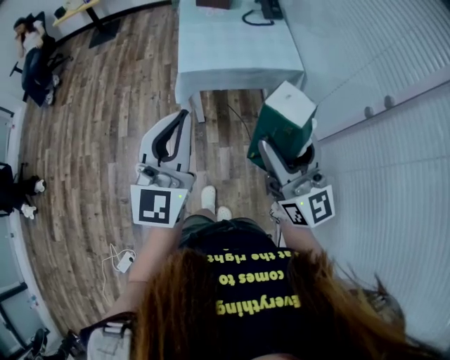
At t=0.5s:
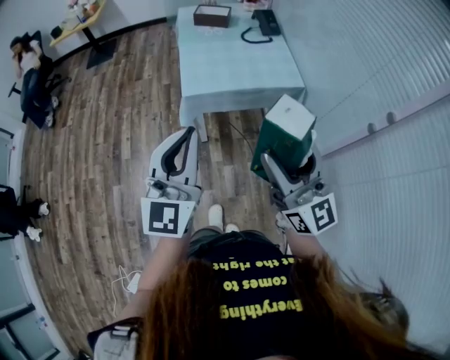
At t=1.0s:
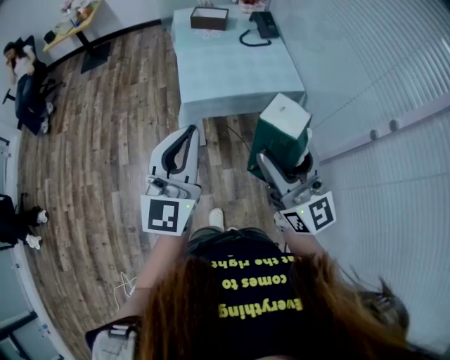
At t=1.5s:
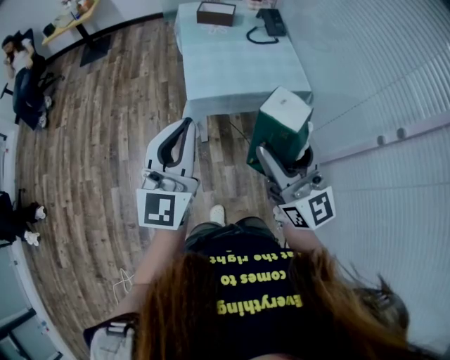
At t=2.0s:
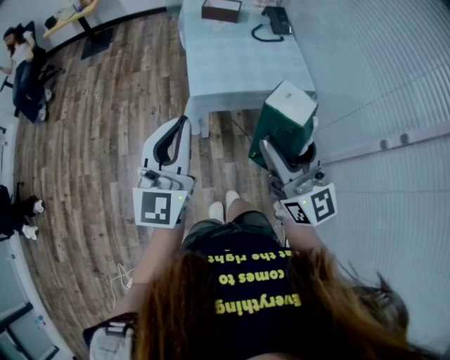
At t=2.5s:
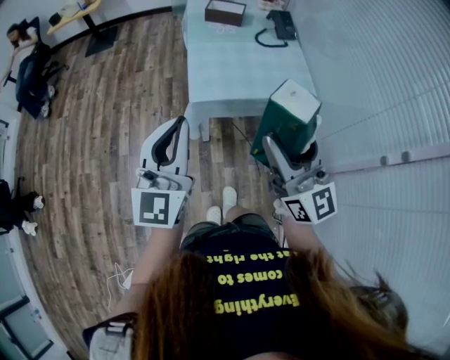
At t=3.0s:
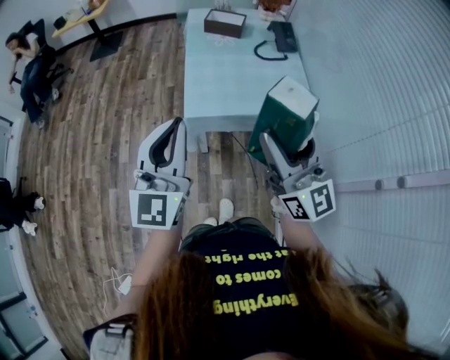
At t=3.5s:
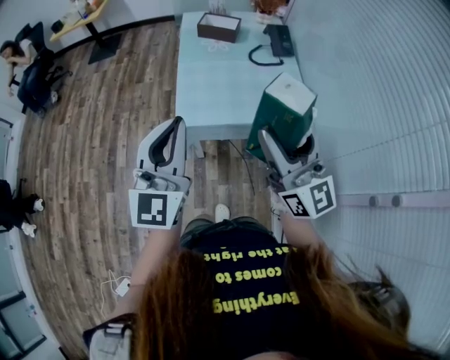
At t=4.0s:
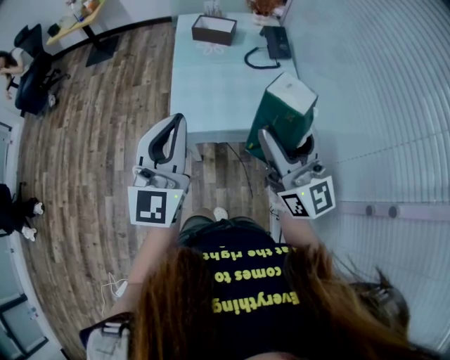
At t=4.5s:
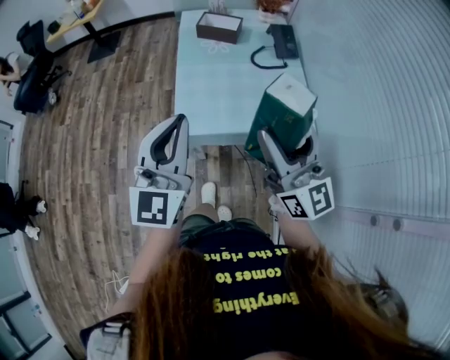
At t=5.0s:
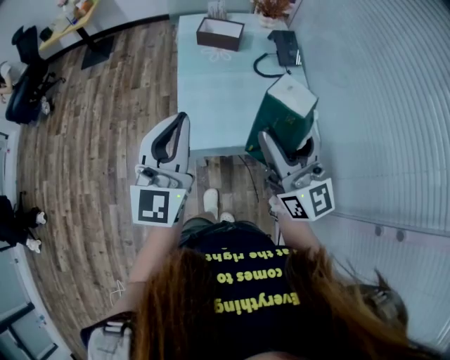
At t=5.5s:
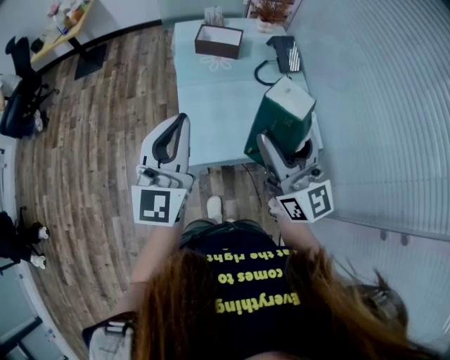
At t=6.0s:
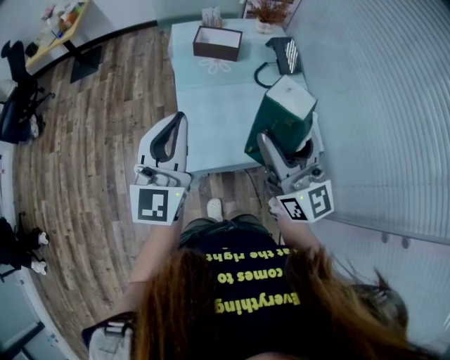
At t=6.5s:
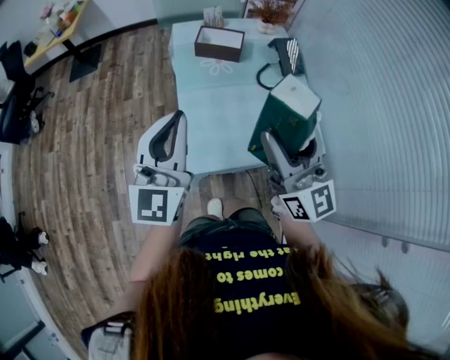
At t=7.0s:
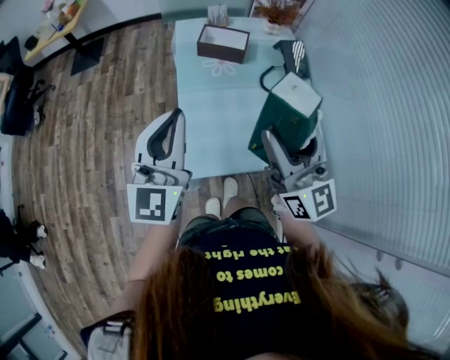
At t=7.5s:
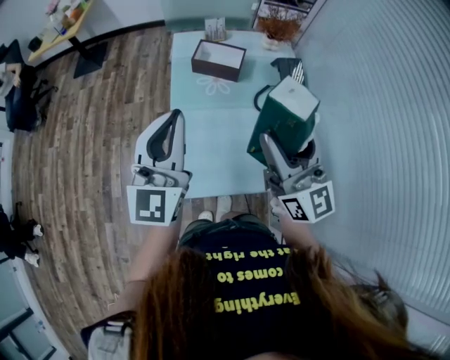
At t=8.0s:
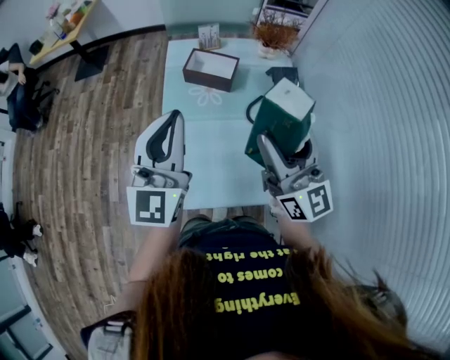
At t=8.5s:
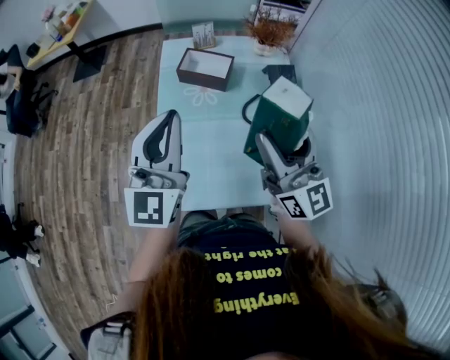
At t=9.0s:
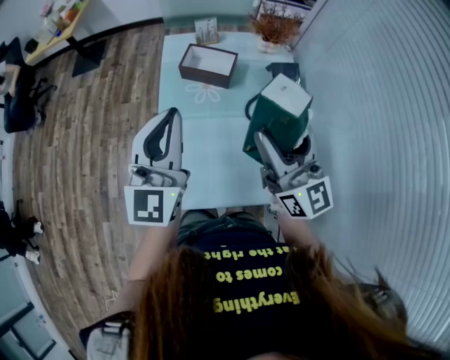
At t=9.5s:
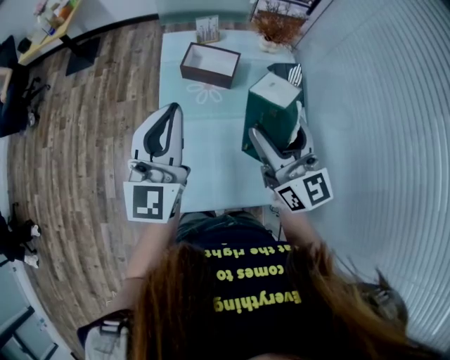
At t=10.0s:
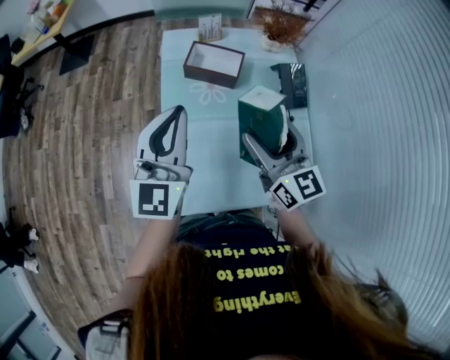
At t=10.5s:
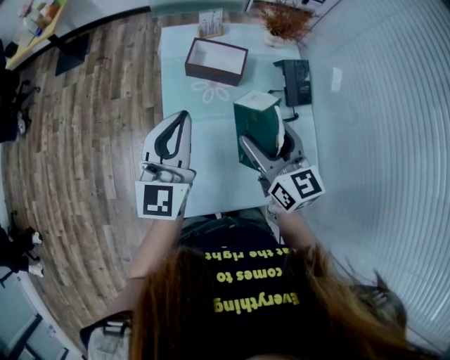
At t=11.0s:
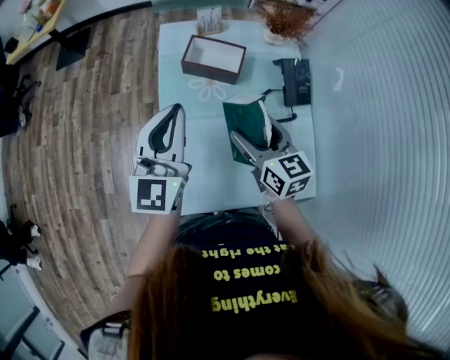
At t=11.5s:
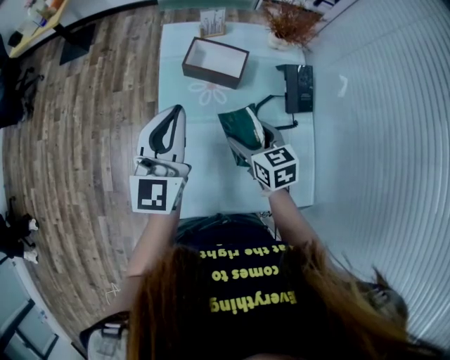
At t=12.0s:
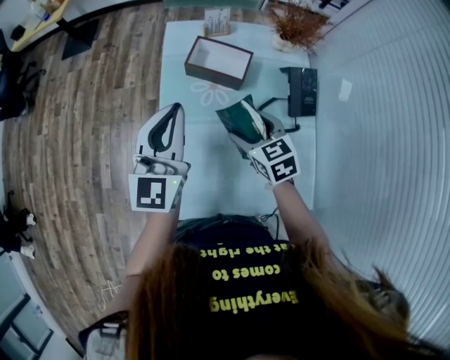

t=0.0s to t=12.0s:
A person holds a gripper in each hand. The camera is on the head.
t=0.0s to t=2.0s: The grippers both shift forward and to the left by approximately 15 cm.
t=2.0s to t=4.0s: Both grippers travel together forward and to the right, about 20 cm.
t=4.0s to t=6.0s: The grippers both shift forward and to the left by approximately 20 cm.
t=6.0s to t=8.0s: Both grippers move forward and to the right, approximately 20 cm.
t=8.0s to t=10.0s: The left gripper travels forward by about 5 cm; the right gripper heads downward, forward and to the left, covering some 15 cm, and changes its angle by approximately 20 degrees.
t=10.0s to t=12.0s: The right gripper moves downward and forward, approximately 15 cm, and tilts its fingers about 40 degrees downward. Meanwhile the left gripper travels forward by some 5 cm.

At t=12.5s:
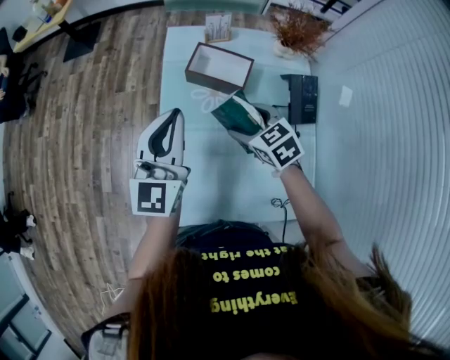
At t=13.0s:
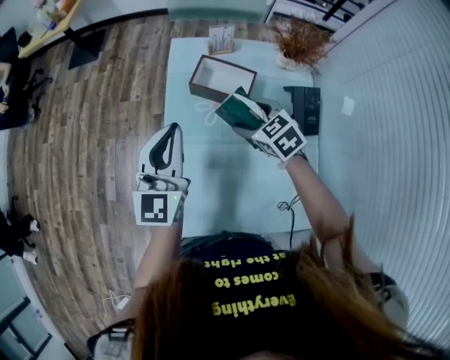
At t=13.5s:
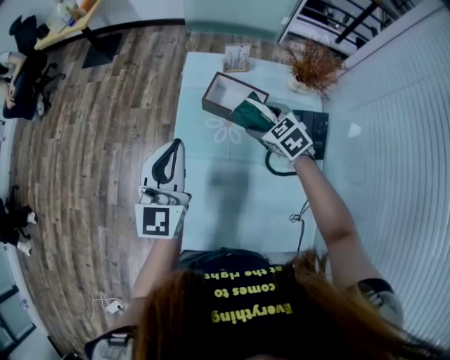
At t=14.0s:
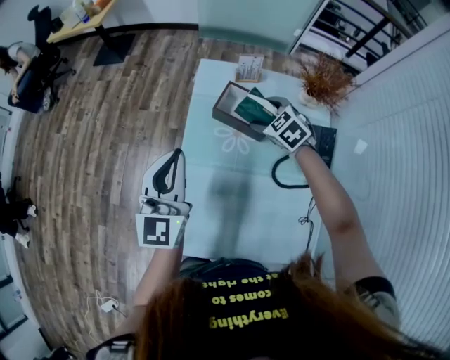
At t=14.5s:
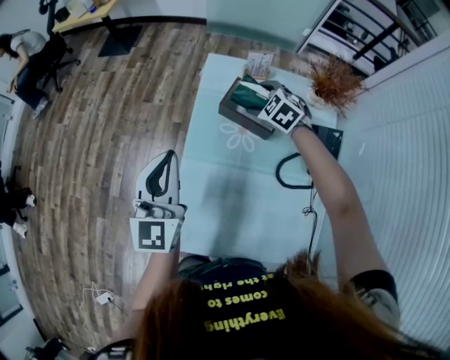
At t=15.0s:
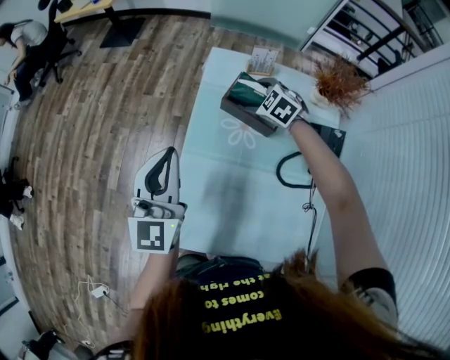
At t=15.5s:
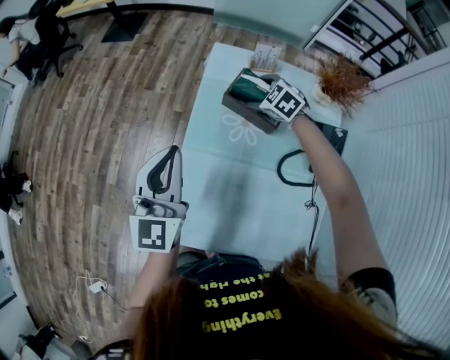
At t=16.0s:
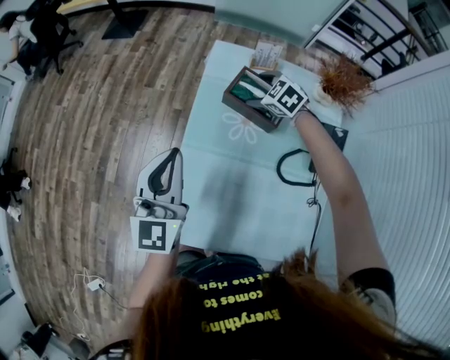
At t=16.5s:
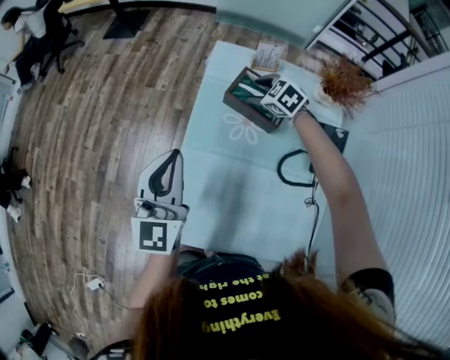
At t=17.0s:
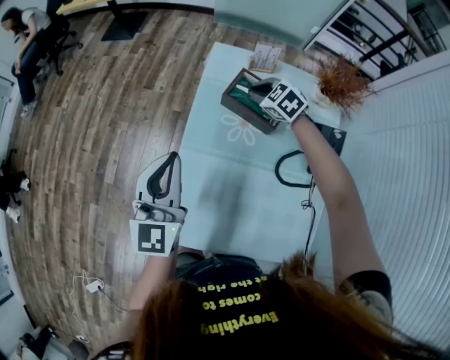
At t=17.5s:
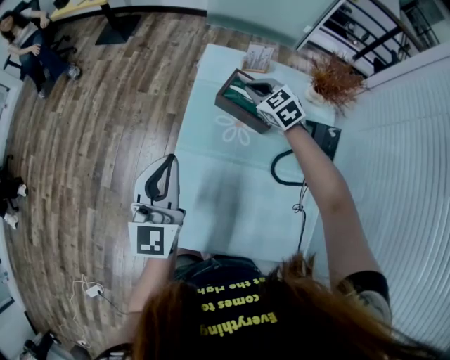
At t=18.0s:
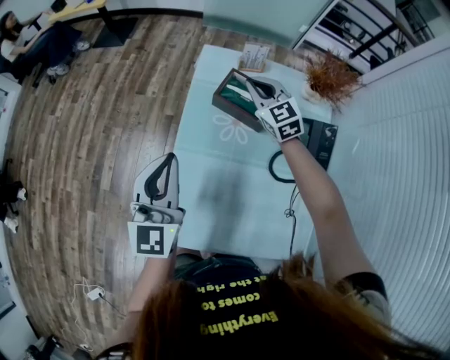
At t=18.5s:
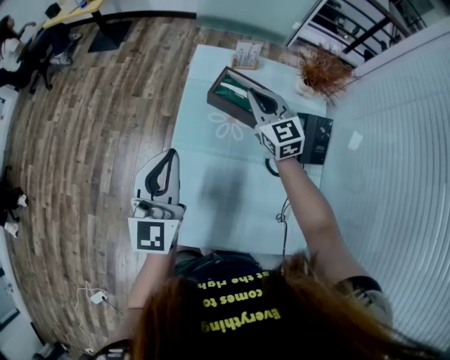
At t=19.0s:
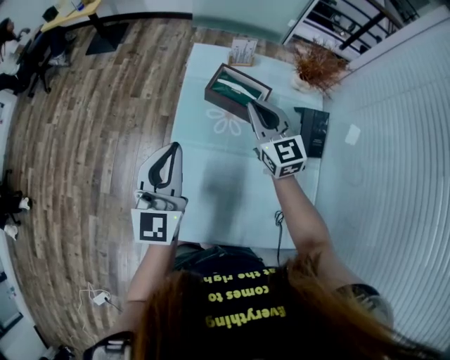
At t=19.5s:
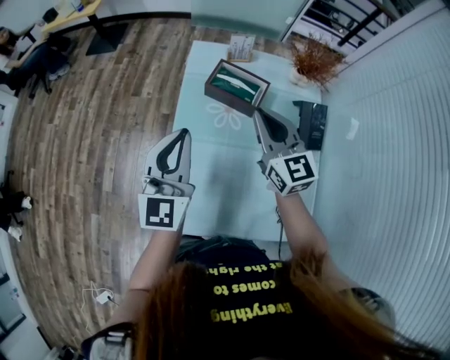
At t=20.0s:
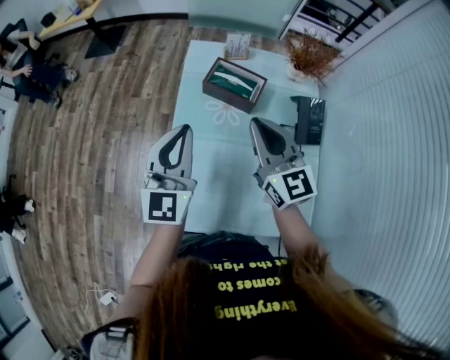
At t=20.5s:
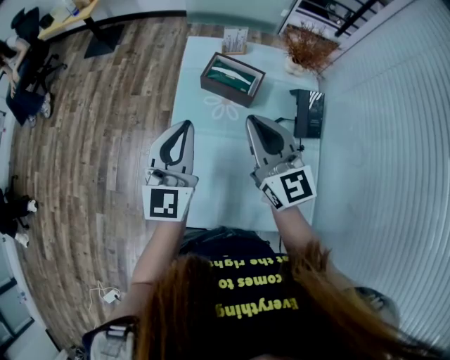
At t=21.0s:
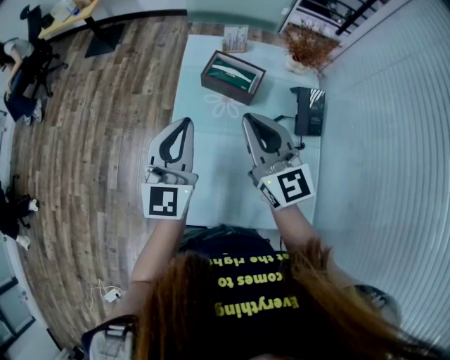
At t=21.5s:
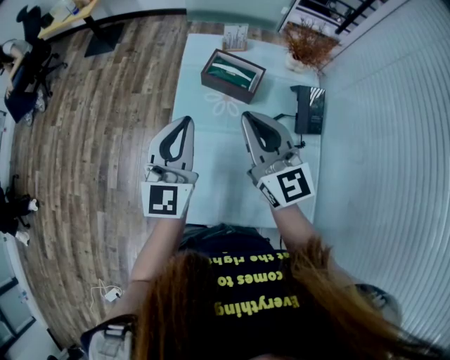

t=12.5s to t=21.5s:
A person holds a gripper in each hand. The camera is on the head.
t=12.5s to t=14.5s: The right gripper goes some 20 cm forward, and changes its angle by approximately 30 degrees. The left gripper goes some 10 cm to the left.
t=14.5s to t=17.0s: The right gripper closes.
t=17.0s to t=19.5s: The right gripper moves backward and upward, roughly 25 cm, and tips its fingers upward by approximately 40 degrees, while the left gripper moves some 5 cm.
t=19.5s to t=21.5s: The right gripper shifts roughly 5 cm backward.

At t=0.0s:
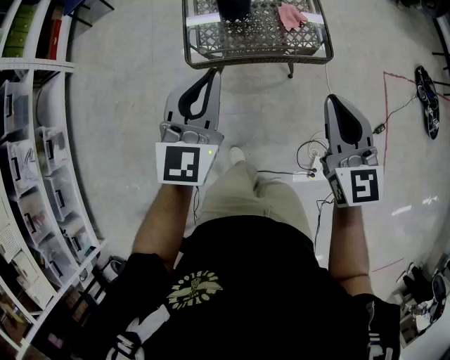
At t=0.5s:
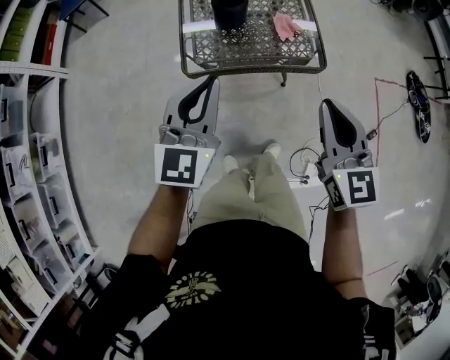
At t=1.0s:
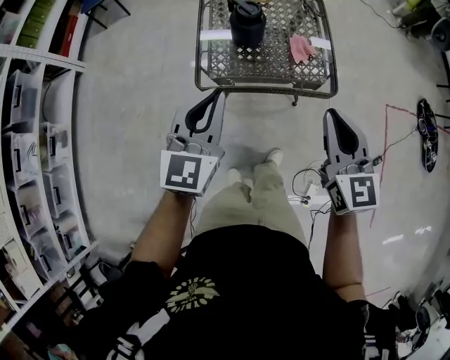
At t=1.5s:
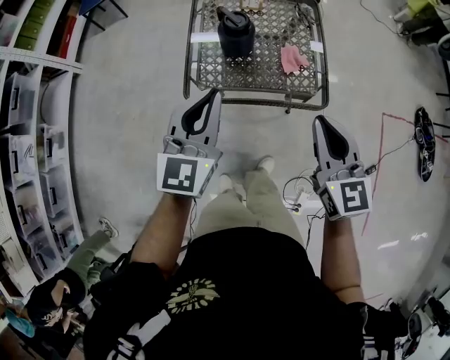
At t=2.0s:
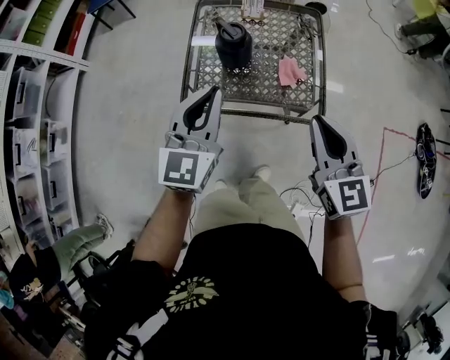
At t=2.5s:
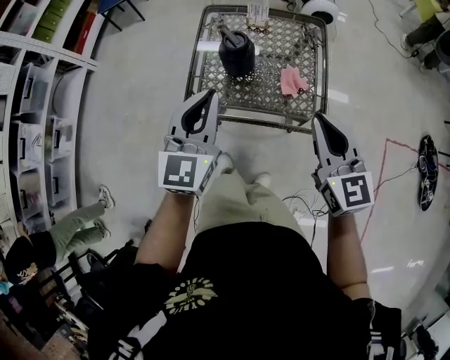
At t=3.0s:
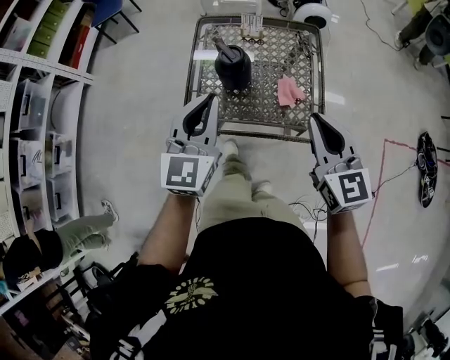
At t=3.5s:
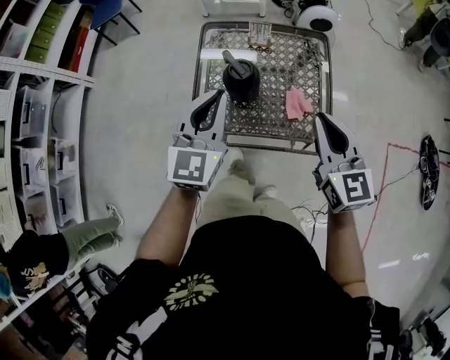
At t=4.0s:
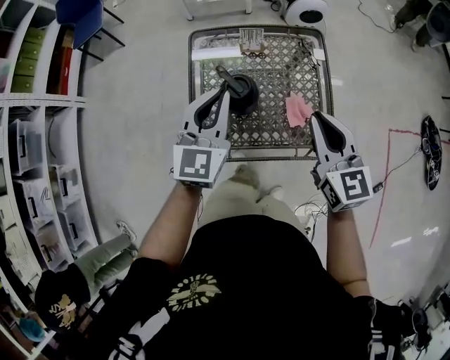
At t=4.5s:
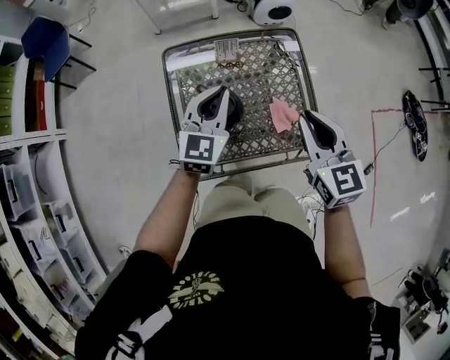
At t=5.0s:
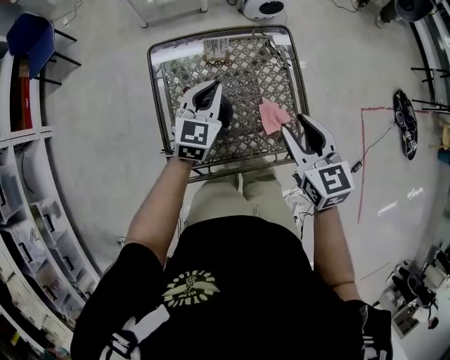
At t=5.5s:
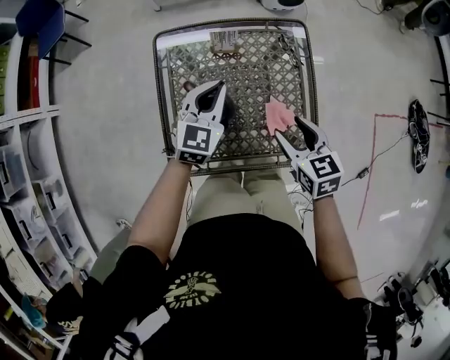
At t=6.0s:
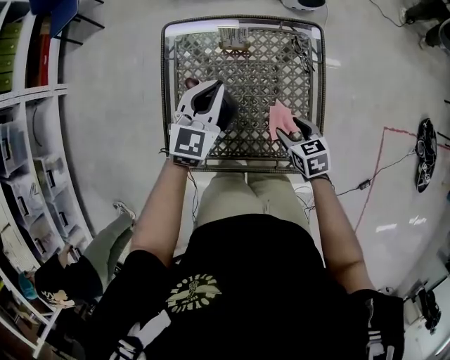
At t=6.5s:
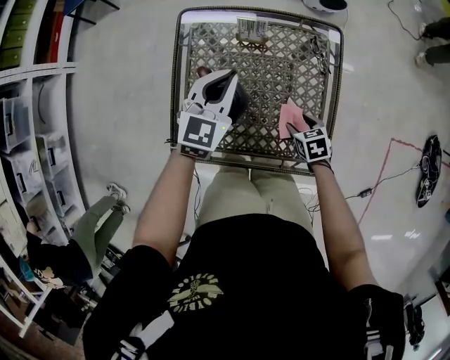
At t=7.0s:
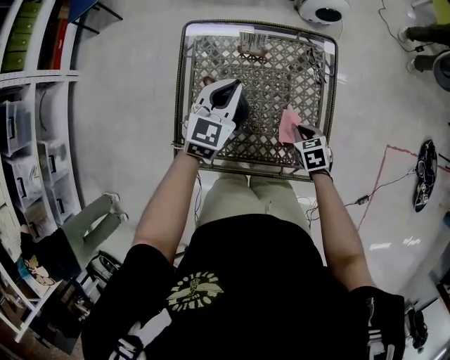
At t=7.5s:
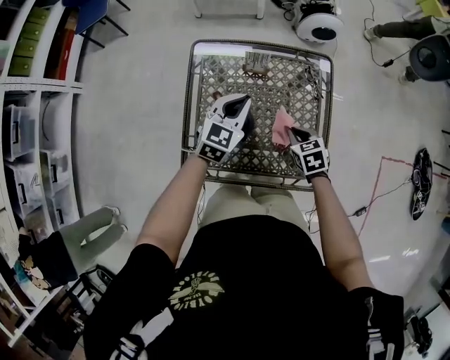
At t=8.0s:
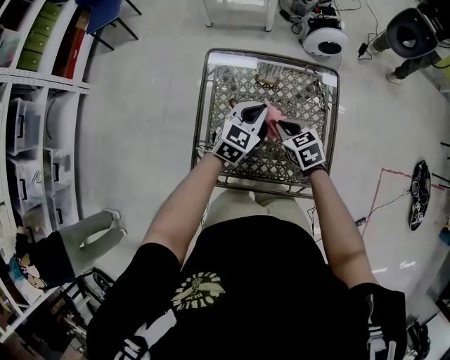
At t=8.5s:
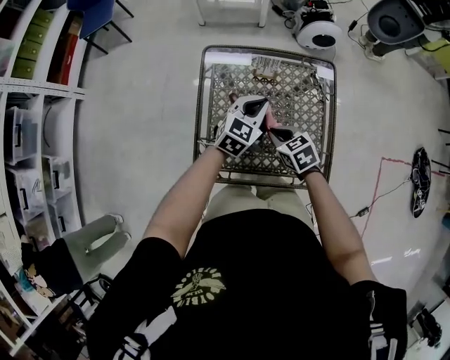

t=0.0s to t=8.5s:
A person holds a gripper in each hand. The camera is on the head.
t=0.0s to t=2.0s: The right gripper heads forward, covering about 15 cm. Meanwhile the left gripper travels forward and to the right by about 15 cm.
t=2.0s to t=4.0s: Both grippers travel together forward, about 20 cm.
t=4.0s to t=6.5s: The right gripper is displaced downward by approximately 35 cm, points its fingers about 50 degrees further downward, and opens up. Meanwhile the left gripper shifts roughly 20 cm downward and forward.
t=6.5s to t=8.5s: The right gripper travels to the left and upward by roughly 20 cm, and closes up.
